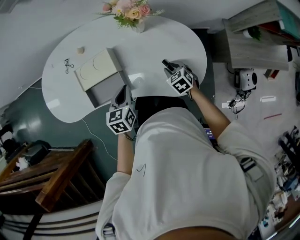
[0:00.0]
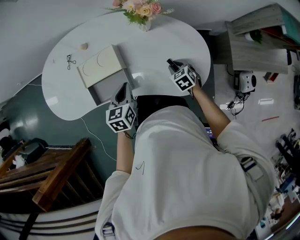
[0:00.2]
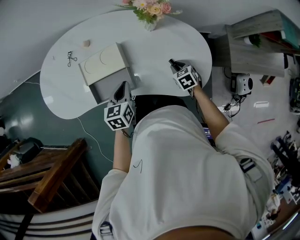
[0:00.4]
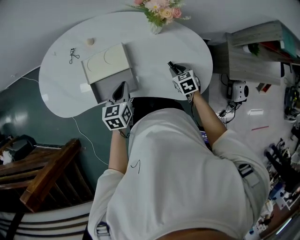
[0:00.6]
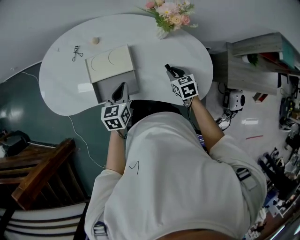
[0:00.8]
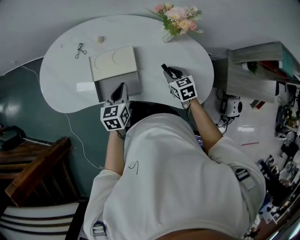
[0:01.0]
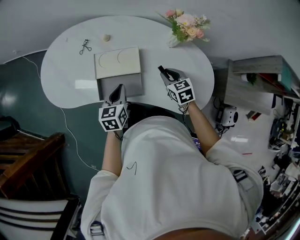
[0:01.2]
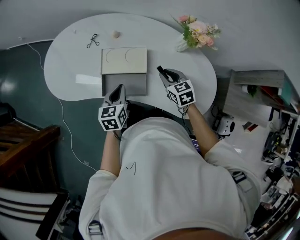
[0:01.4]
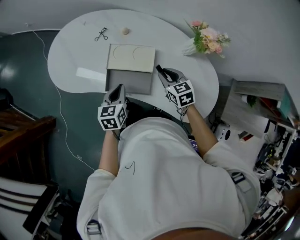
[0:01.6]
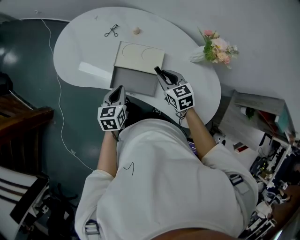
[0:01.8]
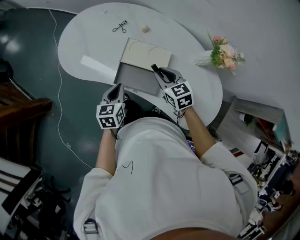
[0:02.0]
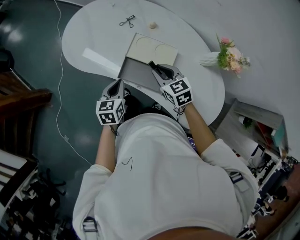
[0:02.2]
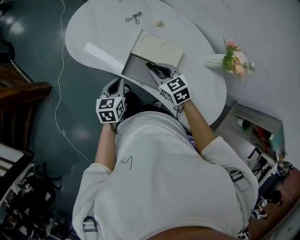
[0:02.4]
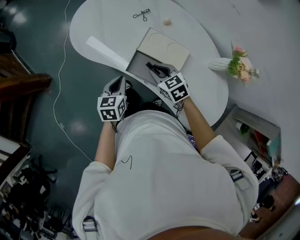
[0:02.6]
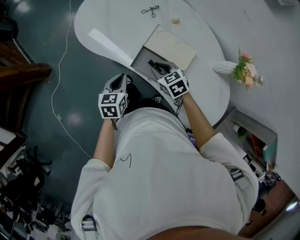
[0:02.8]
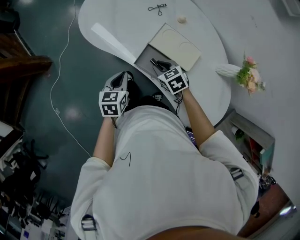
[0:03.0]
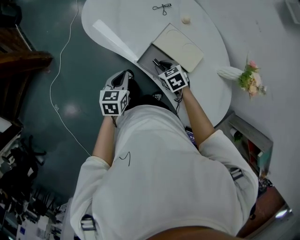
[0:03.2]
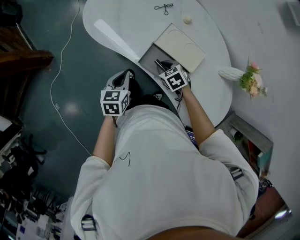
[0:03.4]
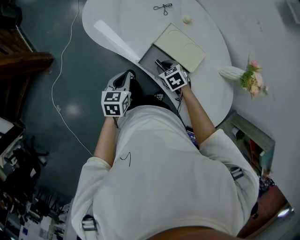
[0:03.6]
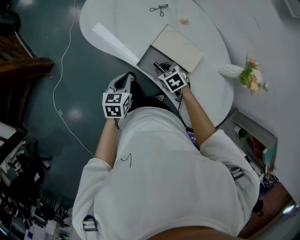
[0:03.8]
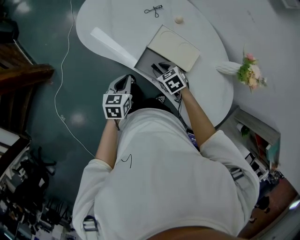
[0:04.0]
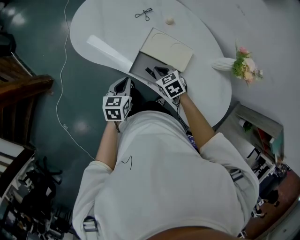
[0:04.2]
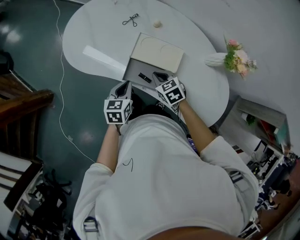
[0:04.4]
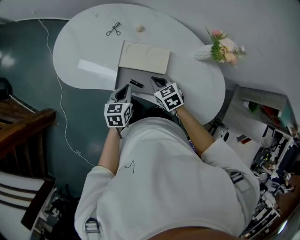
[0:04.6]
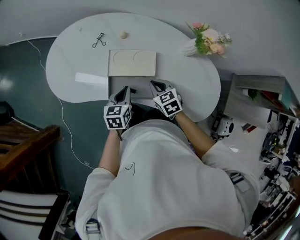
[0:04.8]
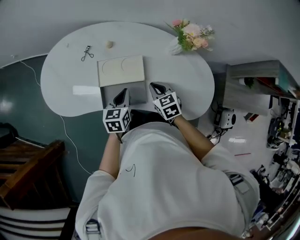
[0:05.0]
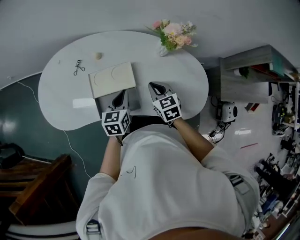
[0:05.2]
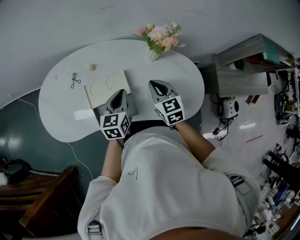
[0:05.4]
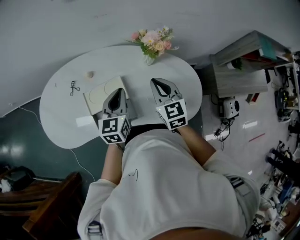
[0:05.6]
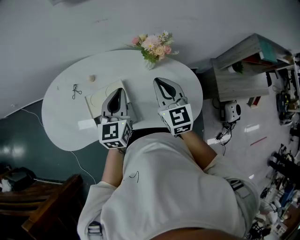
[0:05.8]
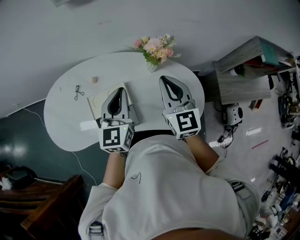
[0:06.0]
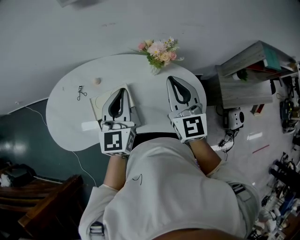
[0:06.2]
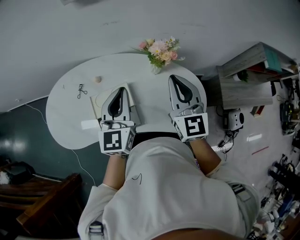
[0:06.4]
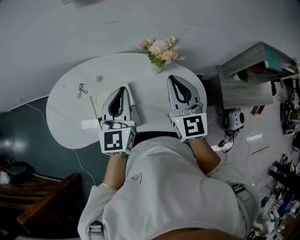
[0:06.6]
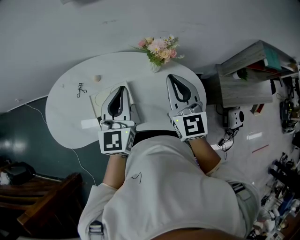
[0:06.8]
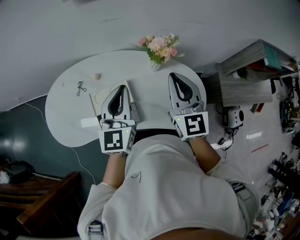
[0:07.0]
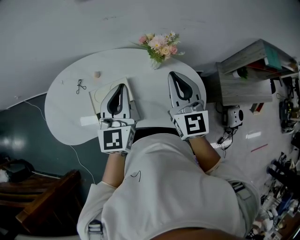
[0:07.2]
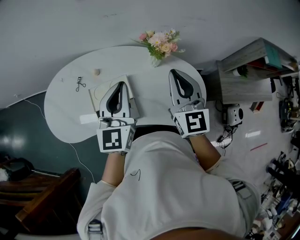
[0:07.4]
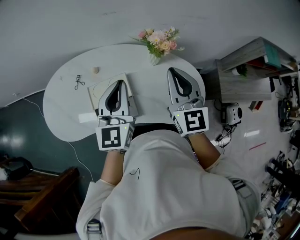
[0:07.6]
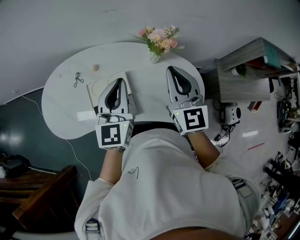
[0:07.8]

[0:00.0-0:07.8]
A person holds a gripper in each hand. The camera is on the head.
0.0 to 1.6 s: The left gripper goes approximately 20 cm to the left, while the right gripper shifts approximately 25 cm to the left, upward and forward, and changes its angle by about 20 degrees.
1.6 to 3.2 s: The right gripper moves approximately 25 cm, and turns by approximately 40 degrees. The left gripper shifts by approximately 15 cm, and turns by roughly 20 degrees.
3.2 to 4.6 s: The left gripper changes place by approximately 15 cm, and turns by some 20 degrees. The right gripper changes place by approximately 10 cm, and rotates some 30 degrees.
4.6 to 6.2 s: Both grippers travel together upward, approximately 25 cm. The left gripper points its fingers roughly 30 degrees further upward, while the right gripper angles its fingers upward, by some 40 degrees.
6.2 to 7.8 s: The grippers move only a little.

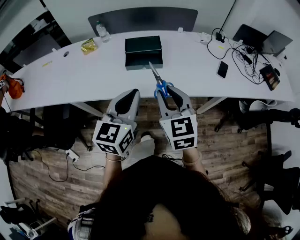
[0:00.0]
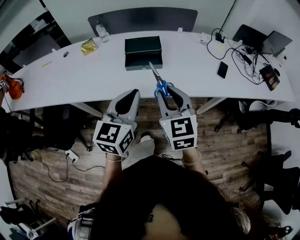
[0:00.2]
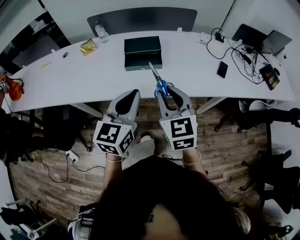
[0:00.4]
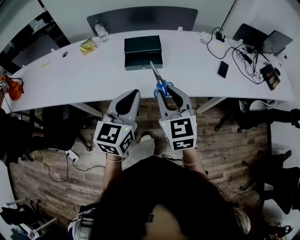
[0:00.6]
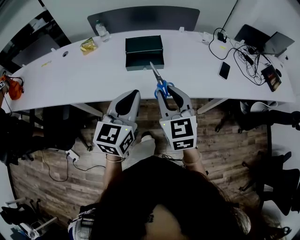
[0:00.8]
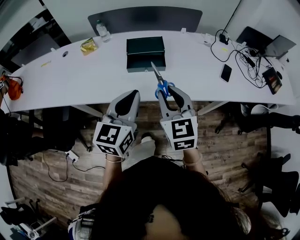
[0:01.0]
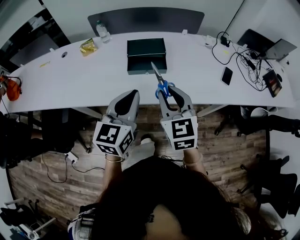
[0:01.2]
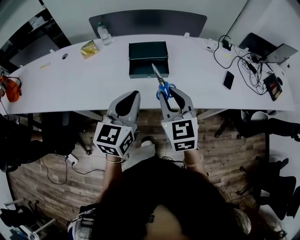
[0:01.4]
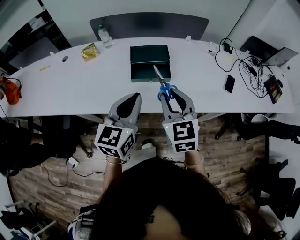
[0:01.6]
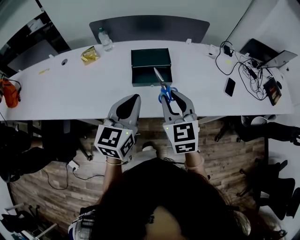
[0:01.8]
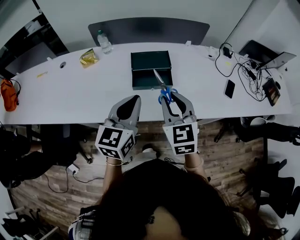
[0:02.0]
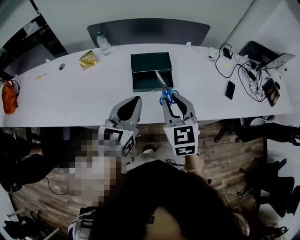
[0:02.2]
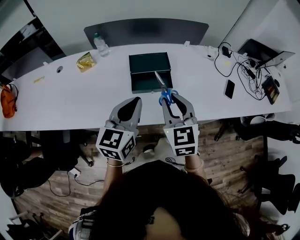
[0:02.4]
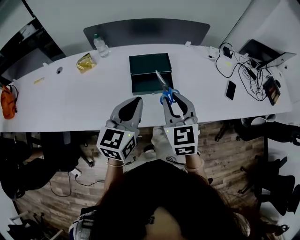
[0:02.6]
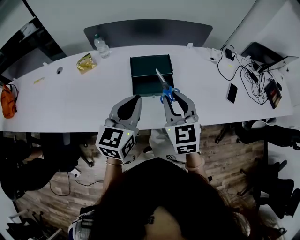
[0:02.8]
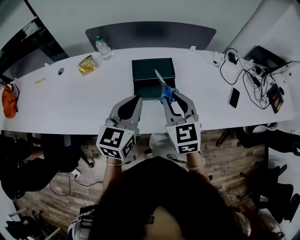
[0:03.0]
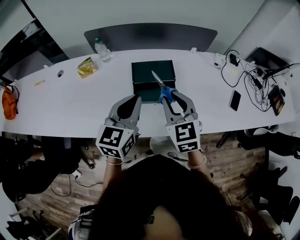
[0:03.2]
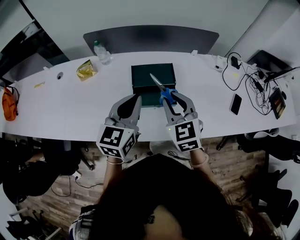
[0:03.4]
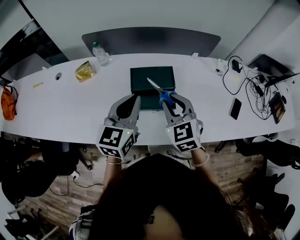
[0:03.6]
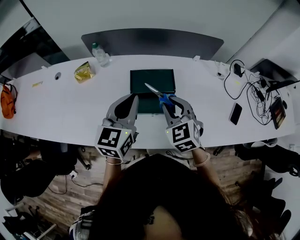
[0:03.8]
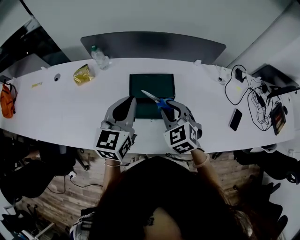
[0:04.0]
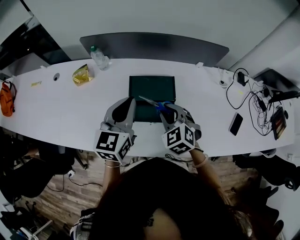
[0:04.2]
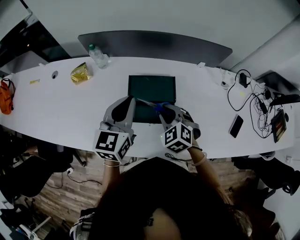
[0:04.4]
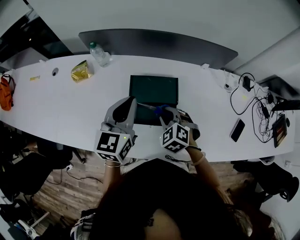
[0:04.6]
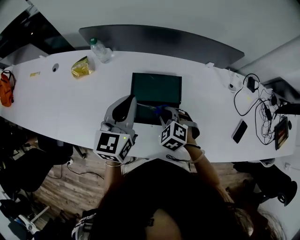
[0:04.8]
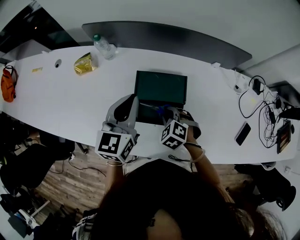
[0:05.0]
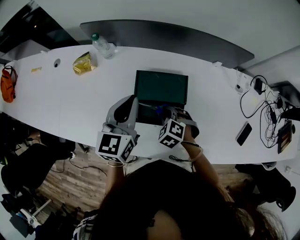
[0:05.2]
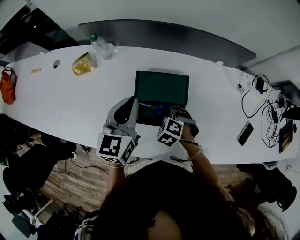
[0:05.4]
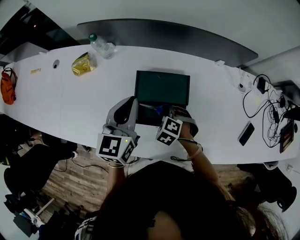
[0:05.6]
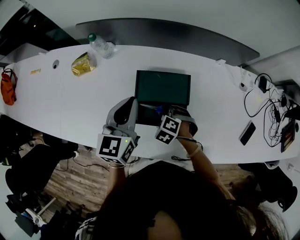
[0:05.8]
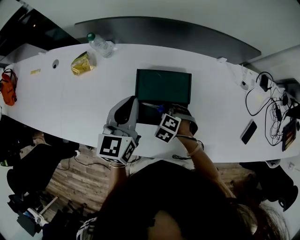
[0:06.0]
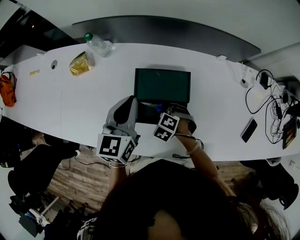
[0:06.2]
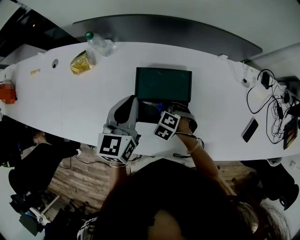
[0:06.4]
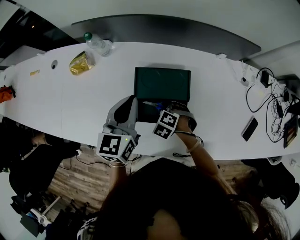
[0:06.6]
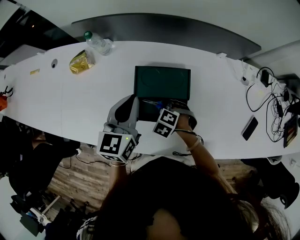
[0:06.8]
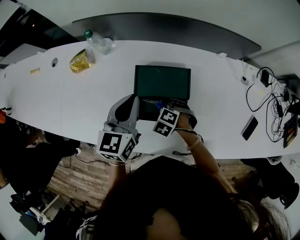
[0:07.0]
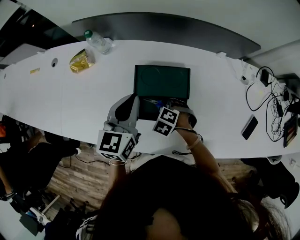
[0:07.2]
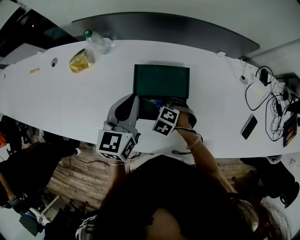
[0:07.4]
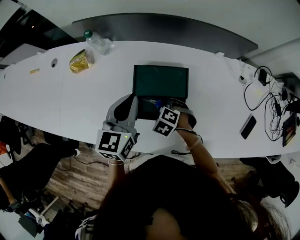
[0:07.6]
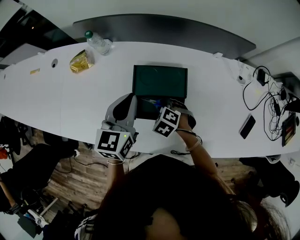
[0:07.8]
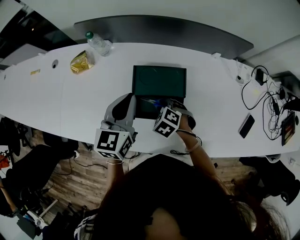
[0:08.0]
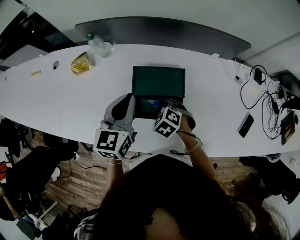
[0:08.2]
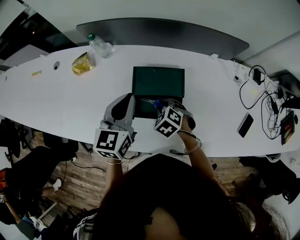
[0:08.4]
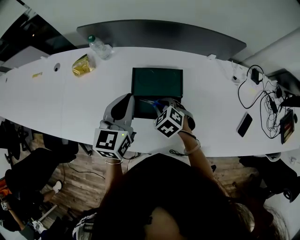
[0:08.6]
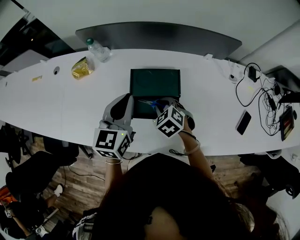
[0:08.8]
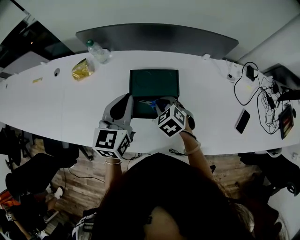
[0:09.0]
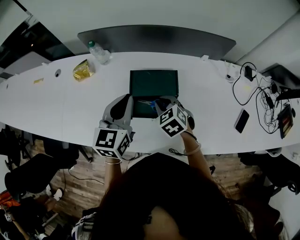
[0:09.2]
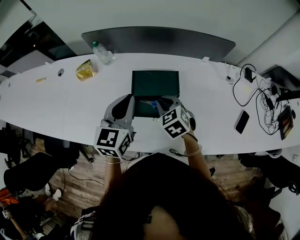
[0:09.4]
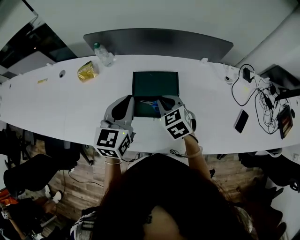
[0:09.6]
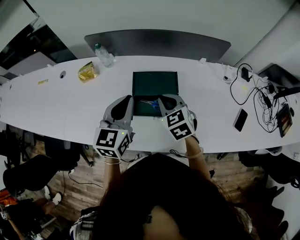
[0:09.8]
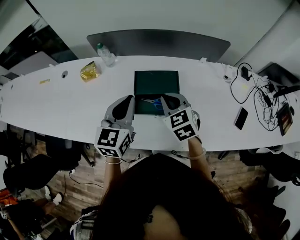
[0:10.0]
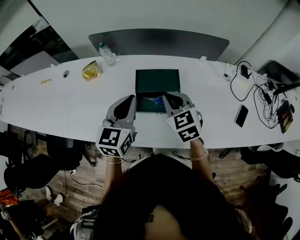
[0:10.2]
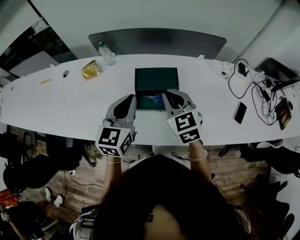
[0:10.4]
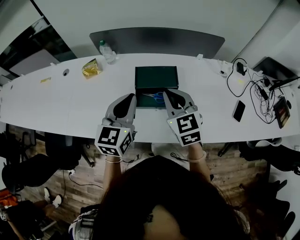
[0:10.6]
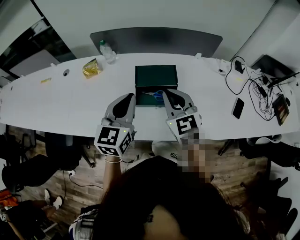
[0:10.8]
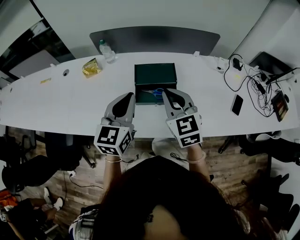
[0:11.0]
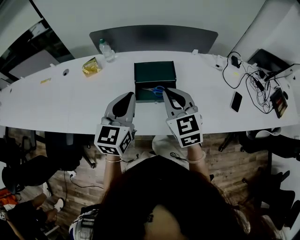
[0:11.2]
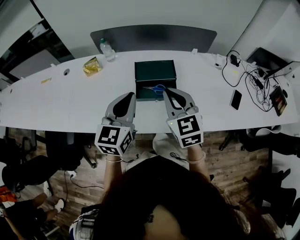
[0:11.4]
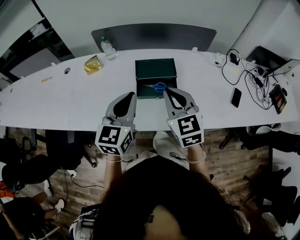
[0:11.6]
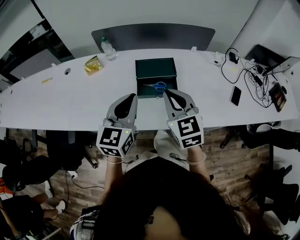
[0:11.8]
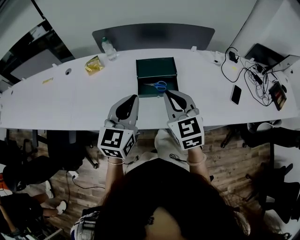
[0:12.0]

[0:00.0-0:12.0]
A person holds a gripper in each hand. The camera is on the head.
0.0 to 1.6 s: The left gripper goes roughly 10 cm forward and to the left. Meanwhile the right gripper is displaced forward by approximately 10 cm.
1.6 to 3.0 s: The two grippers go about 10 cm forward.
3.0 to 4.4 s: The right gripper heads downward and forward, covering some 20 cm, and turns by roughly 40 degrees. The left gripper is displaced forward by approximately 15 cm.
4.4 to 6.0 s: The right gripper shifts some 15 cm downward, and rotates about 30 degrees. Meanwhile the left gripper moves downward and forward, approximately 10 cm.
6.0 to 7.6 s: The grippers make only small movements.
7.6 to 9.0 s: The left gripper ends up about 5 cm from where it was, while the right gripper moves upward, approximately 10 cm, and swivels some 30 degrees.
9.0 to 10.4 s: The right gripper heads upward and backward, covering approximately 20 cm, and rotates some 30 degrees. The left gripper shifts some 10 cm backward.
10.4 to 12.0 s: The grippers both shift backward by roughly 15 cm.

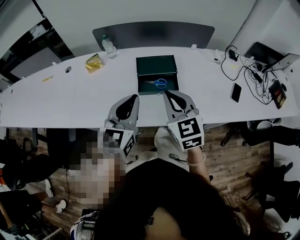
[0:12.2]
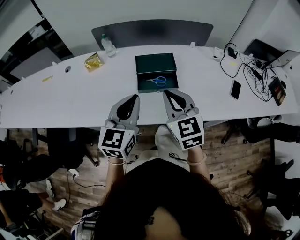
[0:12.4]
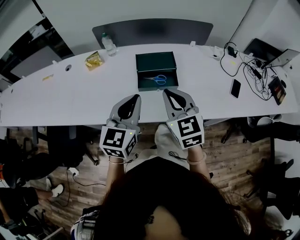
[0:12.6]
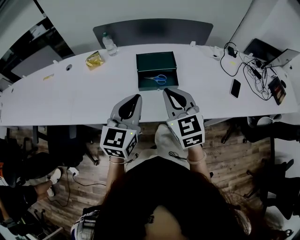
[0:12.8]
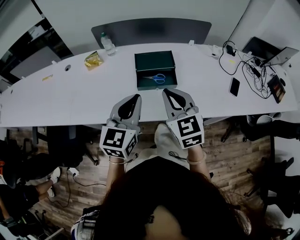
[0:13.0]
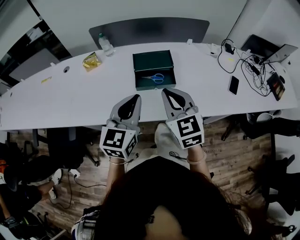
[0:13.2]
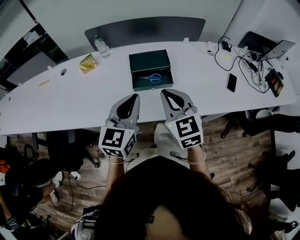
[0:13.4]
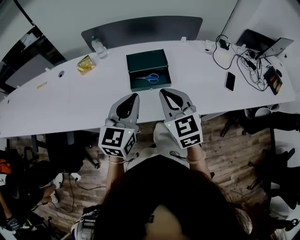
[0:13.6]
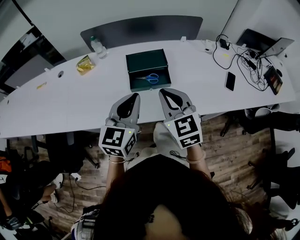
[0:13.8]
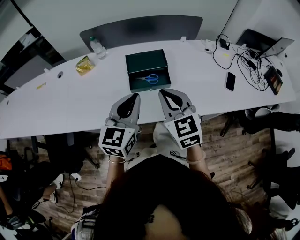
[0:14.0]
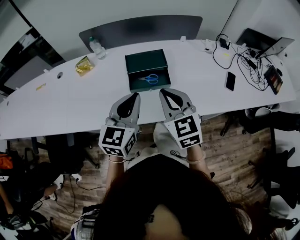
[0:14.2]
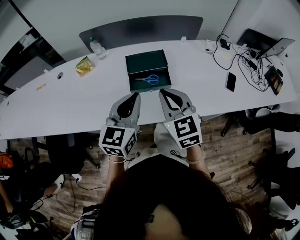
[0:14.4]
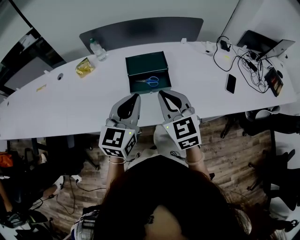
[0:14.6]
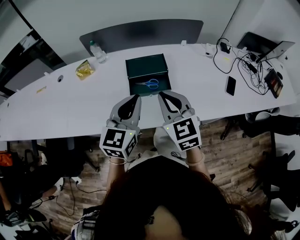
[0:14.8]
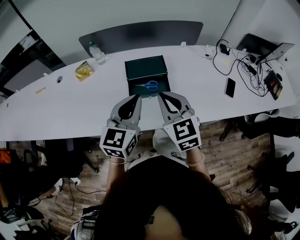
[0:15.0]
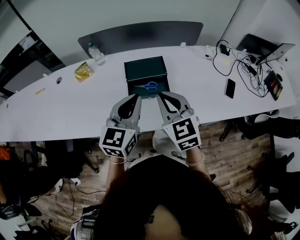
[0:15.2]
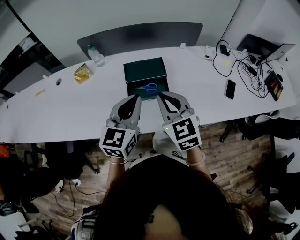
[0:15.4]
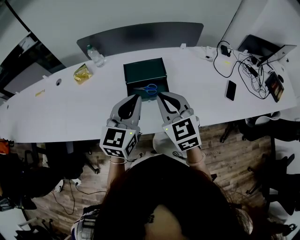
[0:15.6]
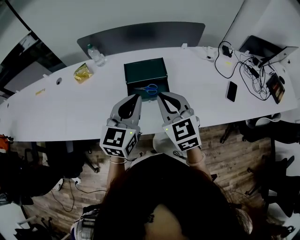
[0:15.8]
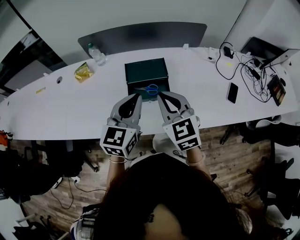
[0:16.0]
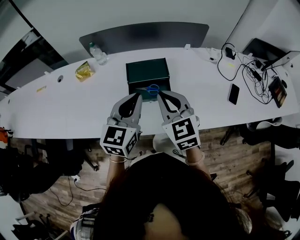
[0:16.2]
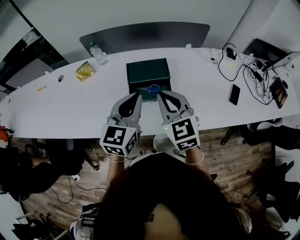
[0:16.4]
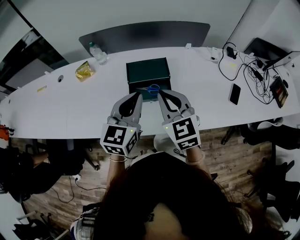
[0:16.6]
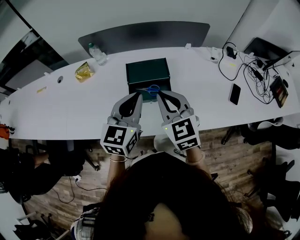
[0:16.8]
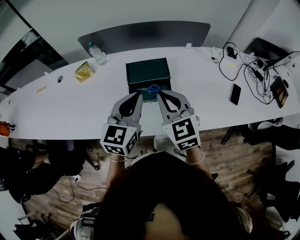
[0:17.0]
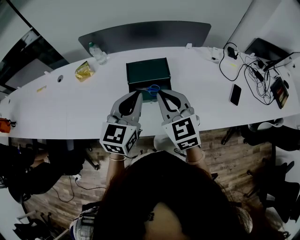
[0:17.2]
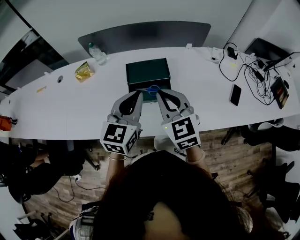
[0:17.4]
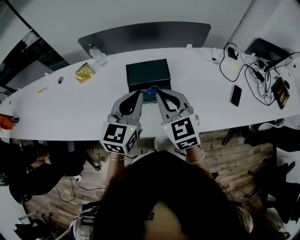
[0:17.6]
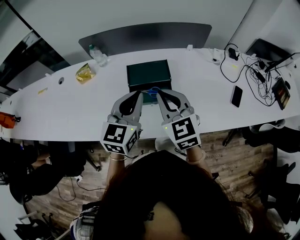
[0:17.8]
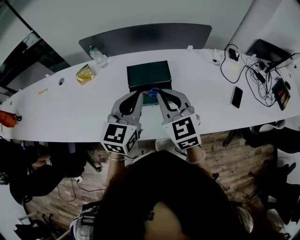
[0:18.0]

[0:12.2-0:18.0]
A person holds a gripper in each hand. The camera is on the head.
12.2 to 15.0 s: The grippers stay close to where they were, moving slightly.
15.0 to 16.6 s: The two grippers go roughly 5 cm forward.
16.6 to 18.0 s: The grippers move only a little.
